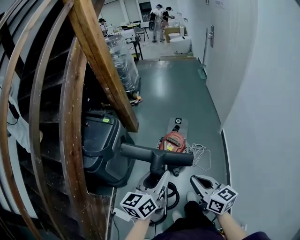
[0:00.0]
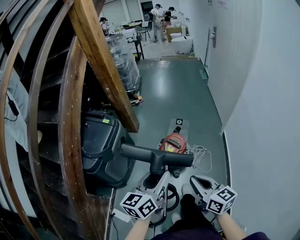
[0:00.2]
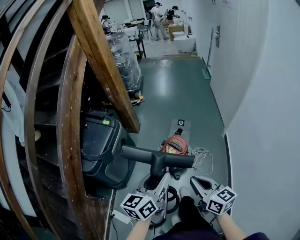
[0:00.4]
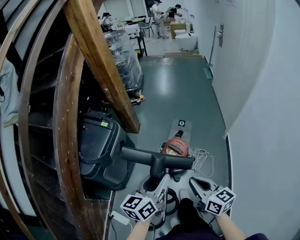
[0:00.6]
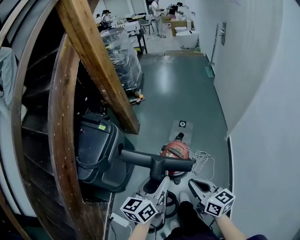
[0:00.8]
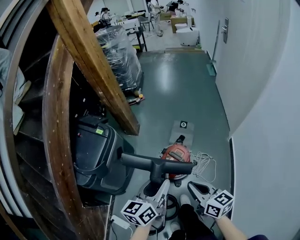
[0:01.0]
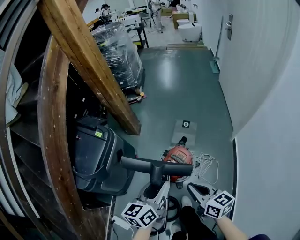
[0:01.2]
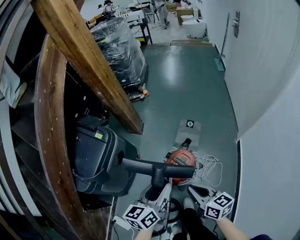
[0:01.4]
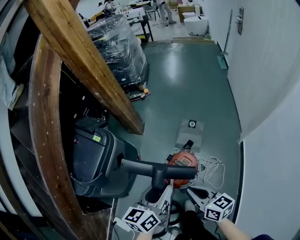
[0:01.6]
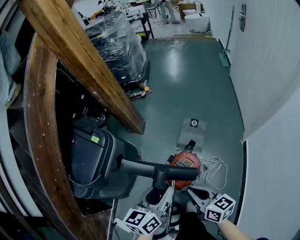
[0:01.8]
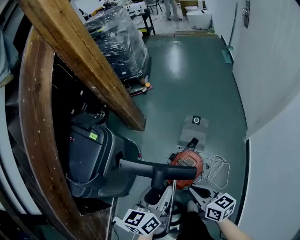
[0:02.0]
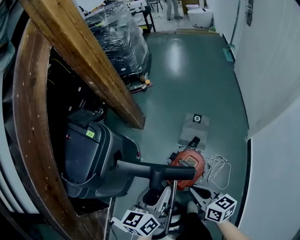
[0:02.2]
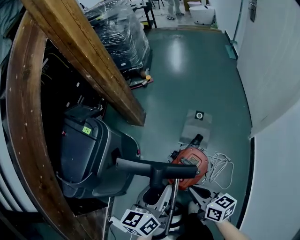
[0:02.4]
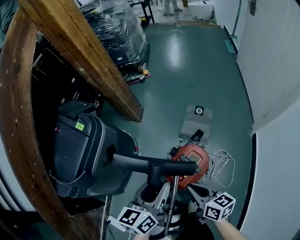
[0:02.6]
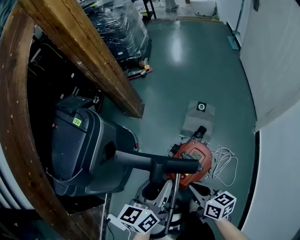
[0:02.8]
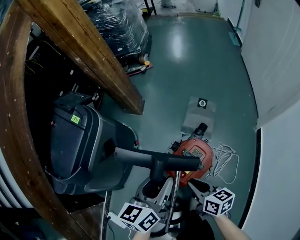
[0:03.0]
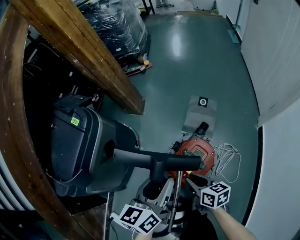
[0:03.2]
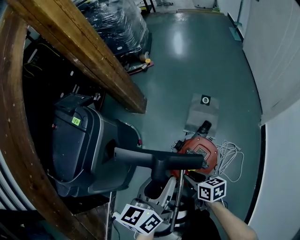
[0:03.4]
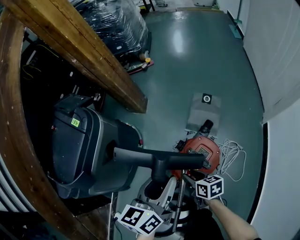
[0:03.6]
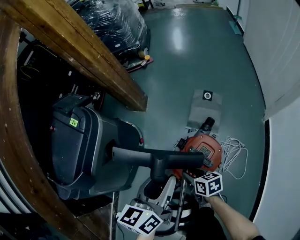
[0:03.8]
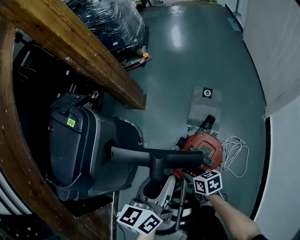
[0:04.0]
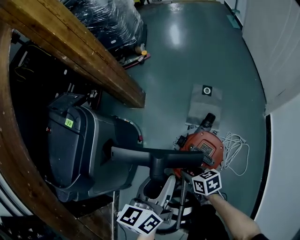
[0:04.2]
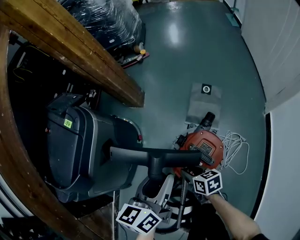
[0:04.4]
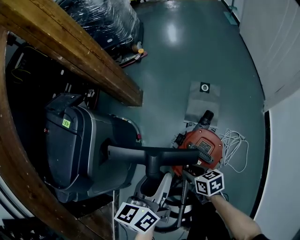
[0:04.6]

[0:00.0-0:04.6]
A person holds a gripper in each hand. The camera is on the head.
0:00.0 to 0:01.6: Both grippers move forward and downward, roughly 30 cm.
0:01.6 to 0:03.0: The grippers both shift downward by approximately 20 cm.
0:03.0 to 0:04.6: The right gripper moves downward, roughly 15 cm, and opens.

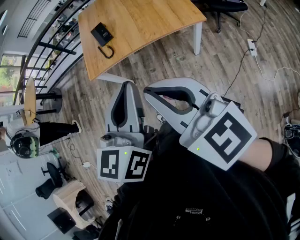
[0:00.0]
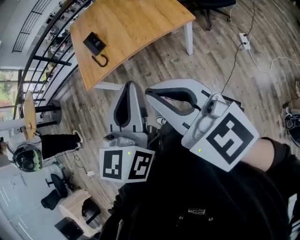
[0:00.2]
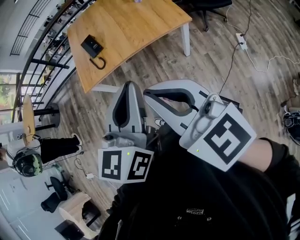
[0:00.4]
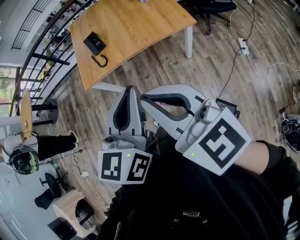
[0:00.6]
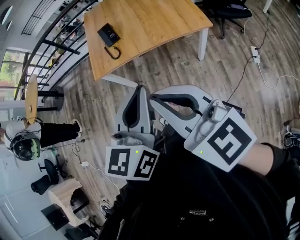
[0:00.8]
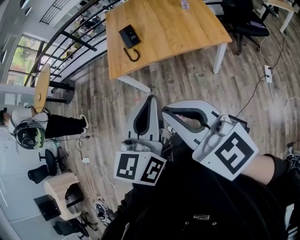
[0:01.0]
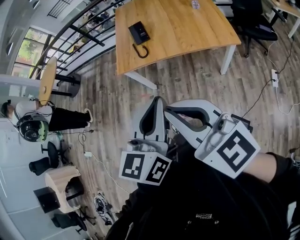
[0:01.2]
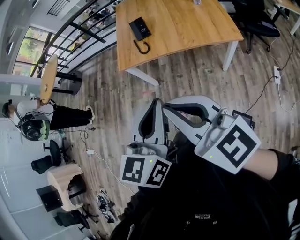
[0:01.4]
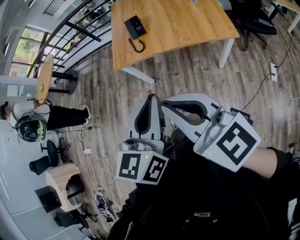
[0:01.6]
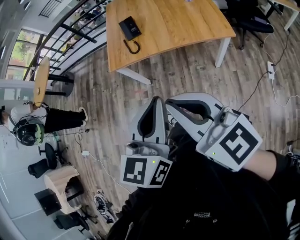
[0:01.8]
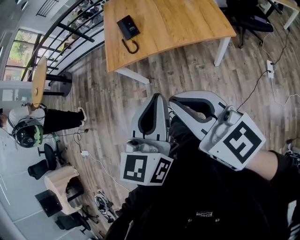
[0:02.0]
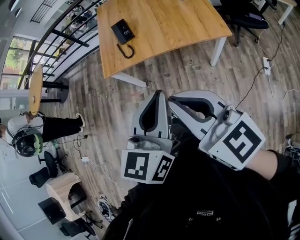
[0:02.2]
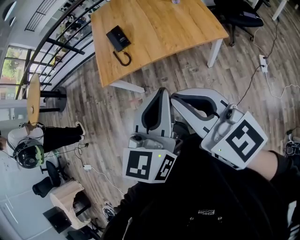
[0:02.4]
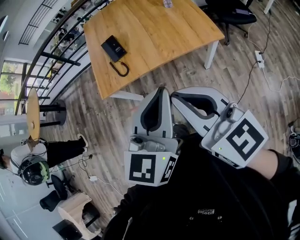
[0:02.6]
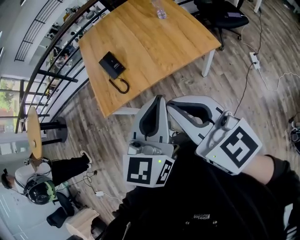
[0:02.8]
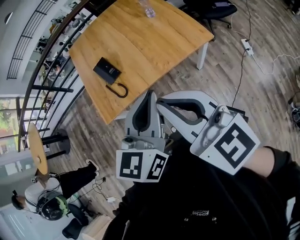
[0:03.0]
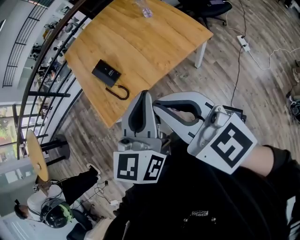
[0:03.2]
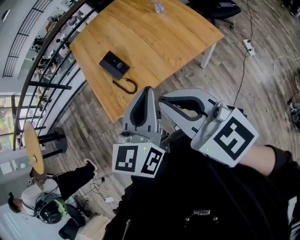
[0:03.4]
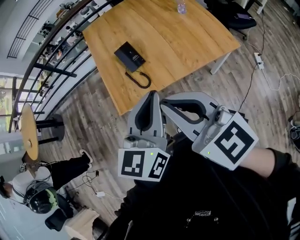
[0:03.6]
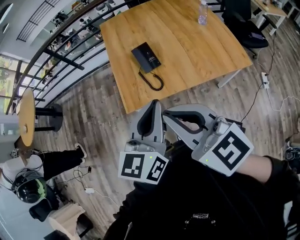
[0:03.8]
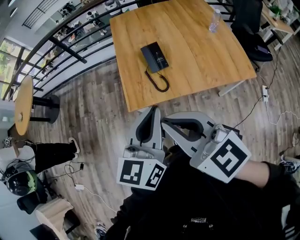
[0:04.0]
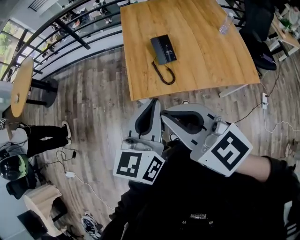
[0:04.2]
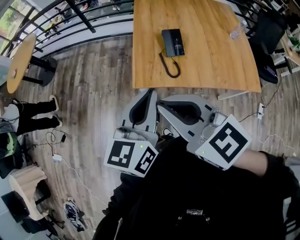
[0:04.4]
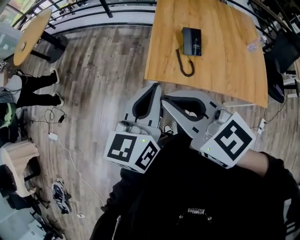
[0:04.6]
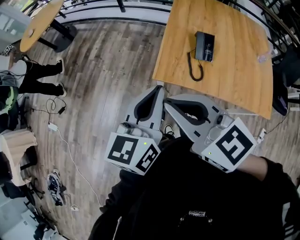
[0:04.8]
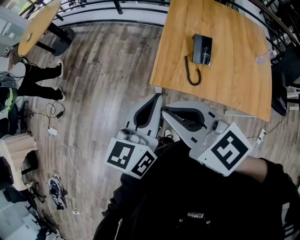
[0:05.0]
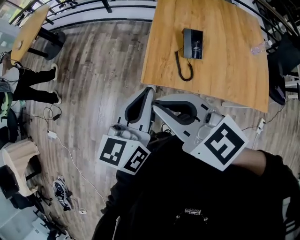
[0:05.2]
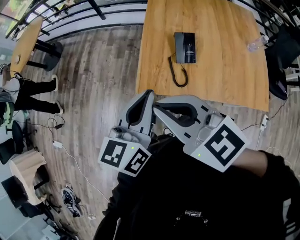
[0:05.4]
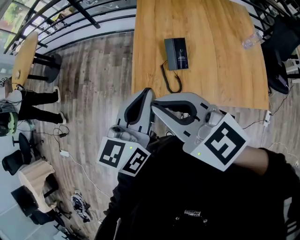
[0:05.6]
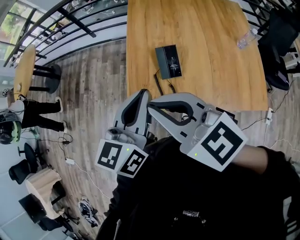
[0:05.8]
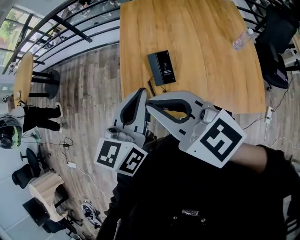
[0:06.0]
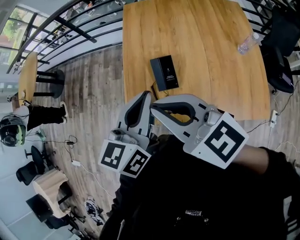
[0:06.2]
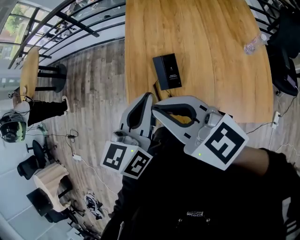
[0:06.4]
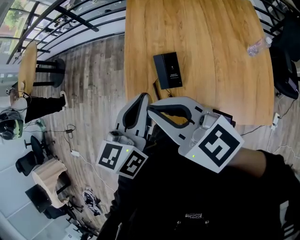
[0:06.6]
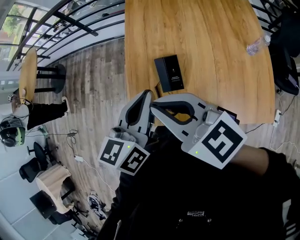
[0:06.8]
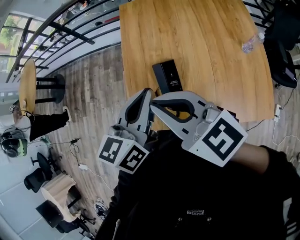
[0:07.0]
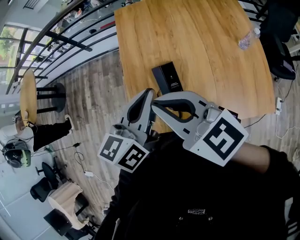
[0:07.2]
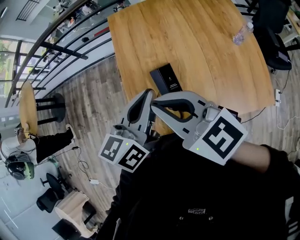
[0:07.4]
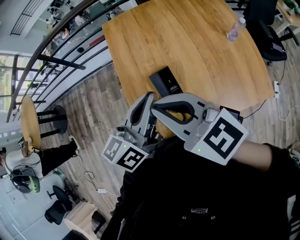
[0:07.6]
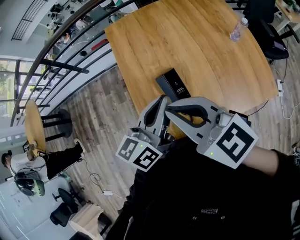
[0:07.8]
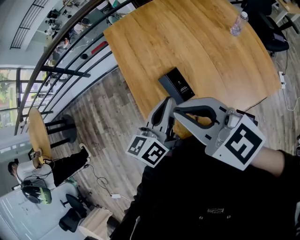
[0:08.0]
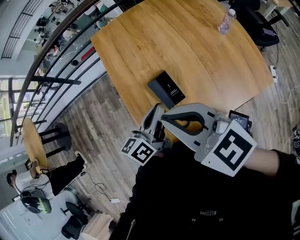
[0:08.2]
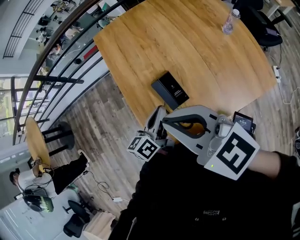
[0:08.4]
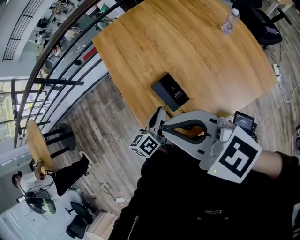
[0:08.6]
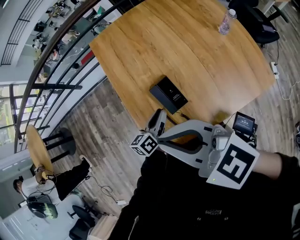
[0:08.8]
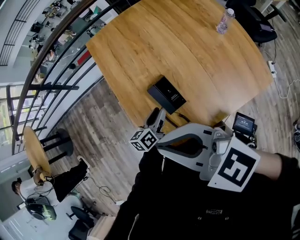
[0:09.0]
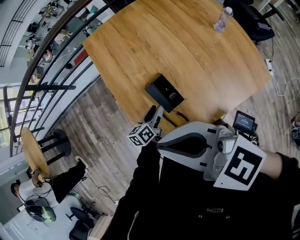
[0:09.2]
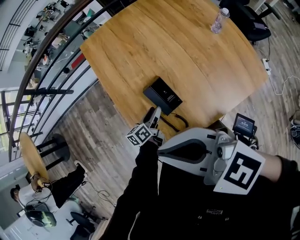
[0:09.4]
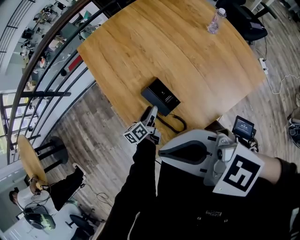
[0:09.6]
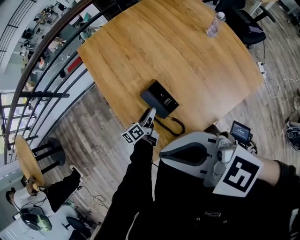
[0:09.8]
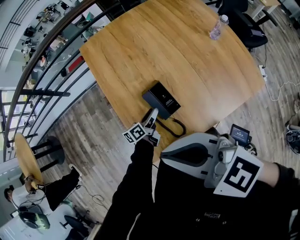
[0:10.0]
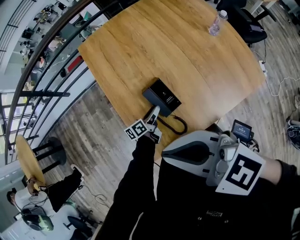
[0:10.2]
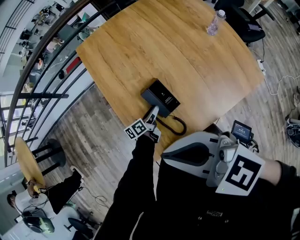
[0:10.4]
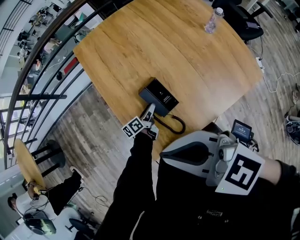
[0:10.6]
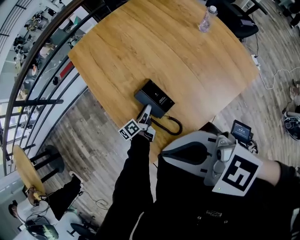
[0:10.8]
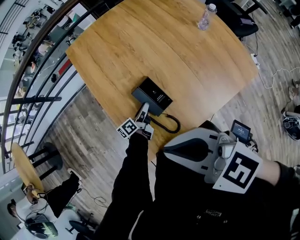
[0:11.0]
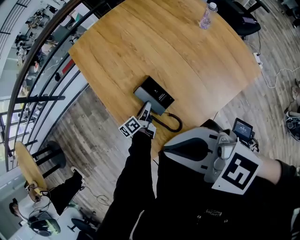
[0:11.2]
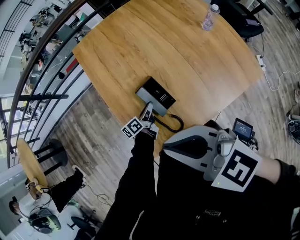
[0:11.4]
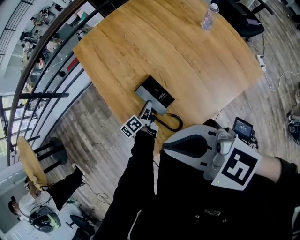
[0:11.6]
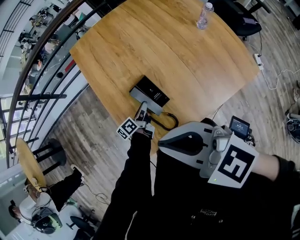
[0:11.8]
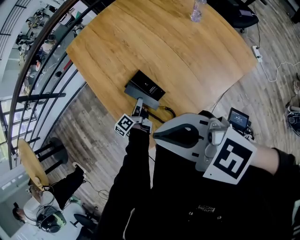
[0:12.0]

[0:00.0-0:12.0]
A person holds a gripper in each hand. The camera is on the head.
0:00.0 to 0:01.6: The two grippers go about 5 cm to the left.
0:01.6 to 0:03.0: The left gripper changes place by roughly 20 cm, and changes its angle by roughly 30 degrees; the right gripper moves approximately 20 cm, and swivels approximately 30 degrees.
0:03.0 to 0:04.4: The right gripper ends up some 35 cm from where it was, and changes its angle by about 40 degrees. Meanwhile the left gripper changes place by approximately 35 cm, and turns by roughly 30 degrees.
0:04.4 to 0:06.0: Both grippers move to the right and forward, some 25 cm.
0:06.0 to 0:07.6: Both grippers move forward, about 10 cm. The left gripper rotates approximately 20 degrees.
0:07.6 to 0:09.0: The left gripper moves downward, some 25 cm, changes its angle by some 30 degrees, and opens up.
0:09.0 to 0:10.4: The left gripper is displaced downward by about 10 cm.
0:10.4 to 0:12.0: The left gripper closes its fingers. Meanwhile the right gripper goes about 5 cm to the right.

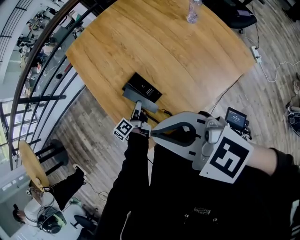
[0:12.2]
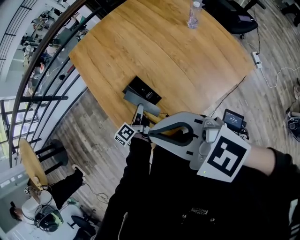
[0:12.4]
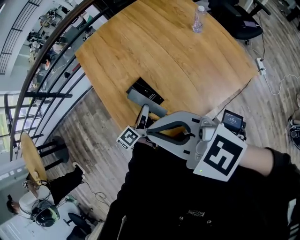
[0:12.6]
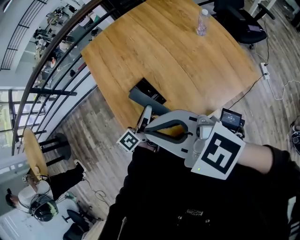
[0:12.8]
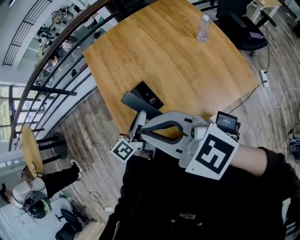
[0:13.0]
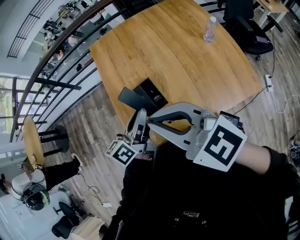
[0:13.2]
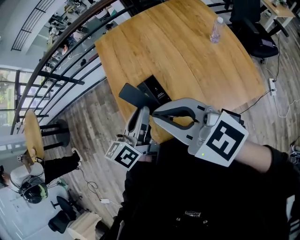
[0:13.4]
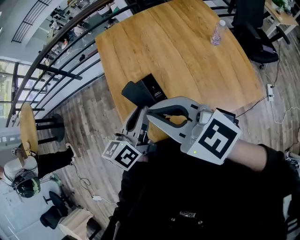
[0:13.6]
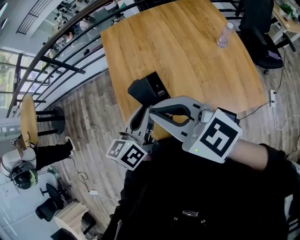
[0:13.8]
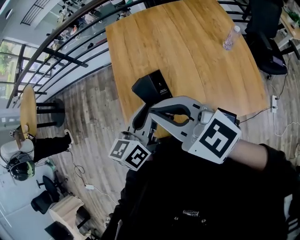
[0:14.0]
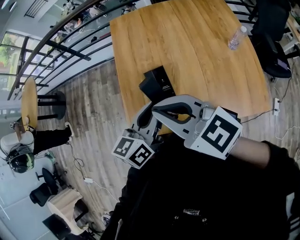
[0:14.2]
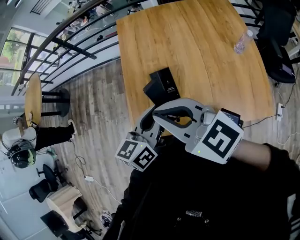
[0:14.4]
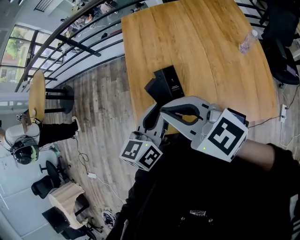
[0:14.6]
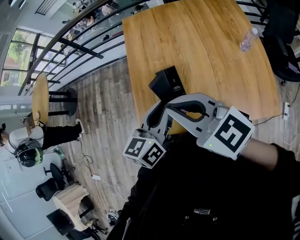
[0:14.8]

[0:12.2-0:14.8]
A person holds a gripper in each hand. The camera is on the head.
0:12.2 to 0:13.4: The left gripper shifts approximately 30 cm upward, and swivels approximately 30 degrees.
0:13.4 to 0:14.8: The grippers make only small movements.

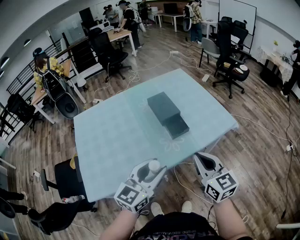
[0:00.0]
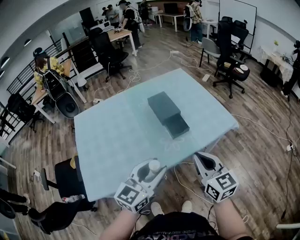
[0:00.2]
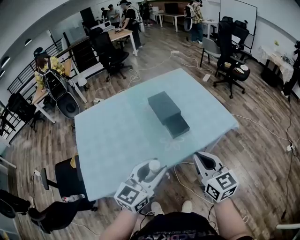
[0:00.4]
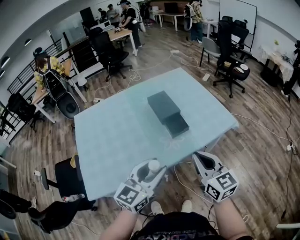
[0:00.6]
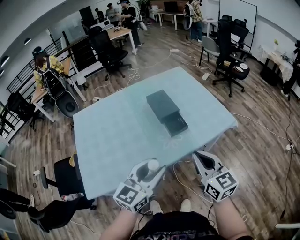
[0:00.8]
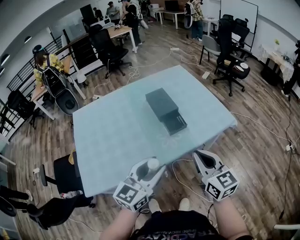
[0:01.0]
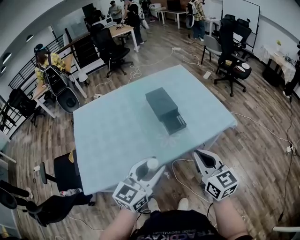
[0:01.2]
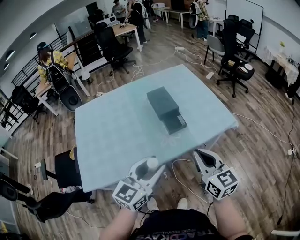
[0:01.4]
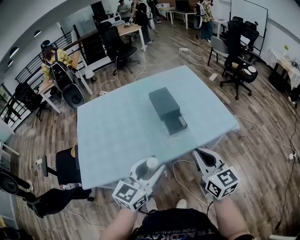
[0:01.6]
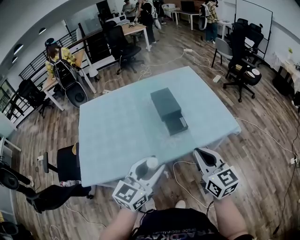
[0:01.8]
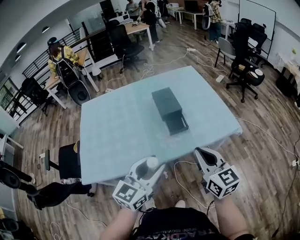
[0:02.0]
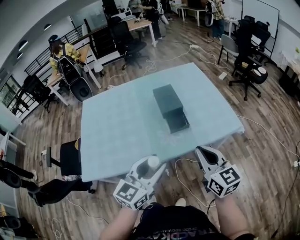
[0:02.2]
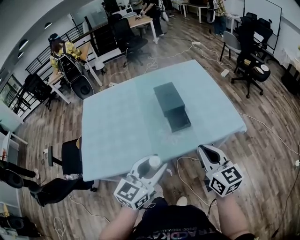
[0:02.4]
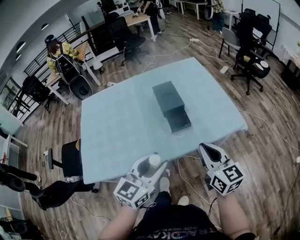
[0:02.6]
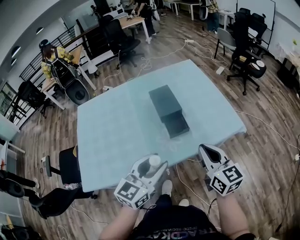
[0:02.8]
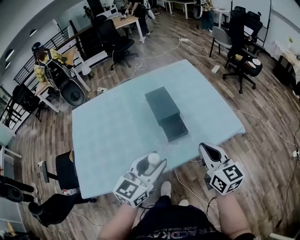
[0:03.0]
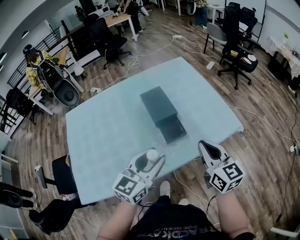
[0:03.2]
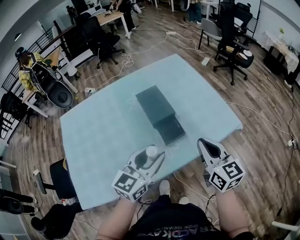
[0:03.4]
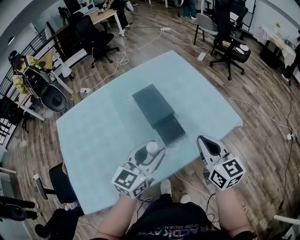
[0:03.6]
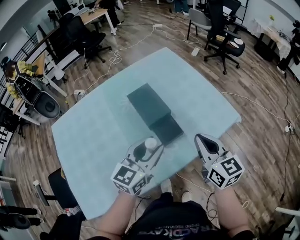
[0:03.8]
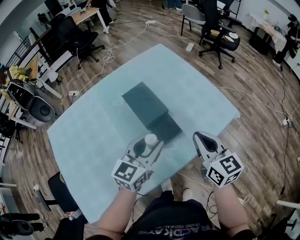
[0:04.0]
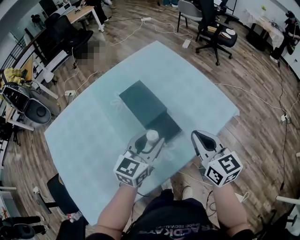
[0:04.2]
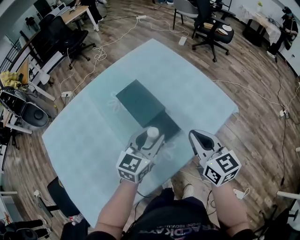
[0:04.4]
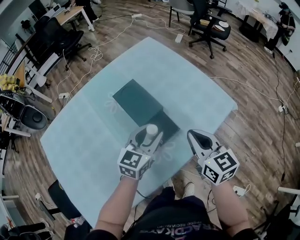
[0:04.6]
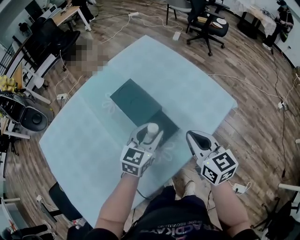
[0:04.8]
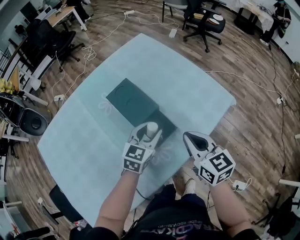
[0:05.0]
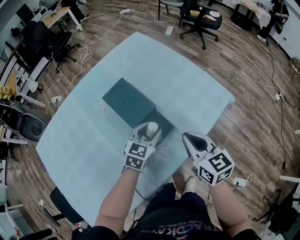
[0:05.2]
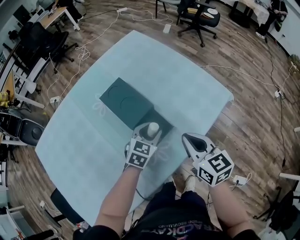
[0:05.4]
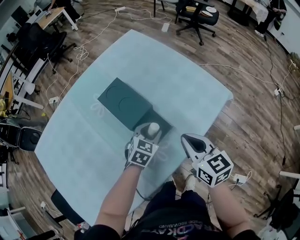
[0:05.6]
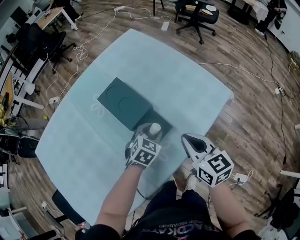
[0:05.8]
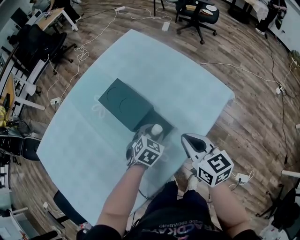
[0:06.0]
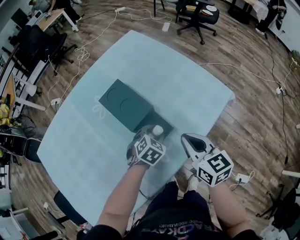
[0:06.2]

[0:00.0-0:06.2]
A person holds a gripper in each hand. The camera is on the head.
0:00.0 to 0:01.6: The two grippers go about 5 cm to the right.
0:01.6 to 0:03.2: The grippers both shift forward by about 15 cm.
0:03.2 to 0:04.6: The right gripper travels forward and downward by about 10 cm. Meanwhile the left gripper shifts some 20 cm forward and downward.
0:04.6 to 0:06.2: The right gripper shifts approximately 5 cm downward; the left gripper travels downward by some 15 cm, and points its fingers about 40 degrees further downward.
